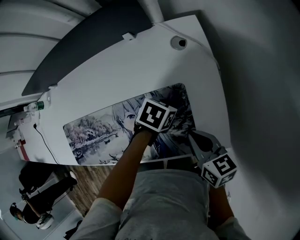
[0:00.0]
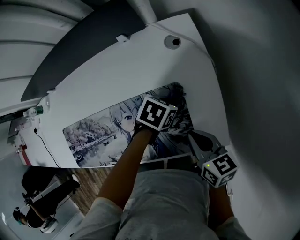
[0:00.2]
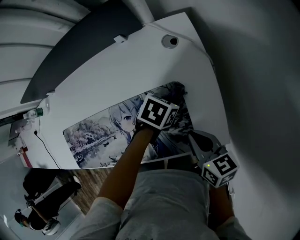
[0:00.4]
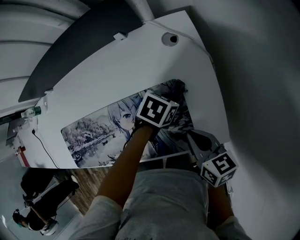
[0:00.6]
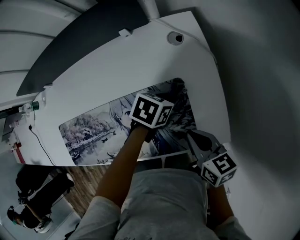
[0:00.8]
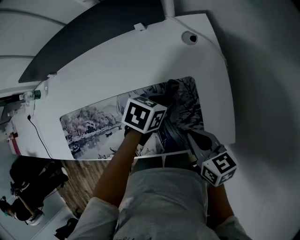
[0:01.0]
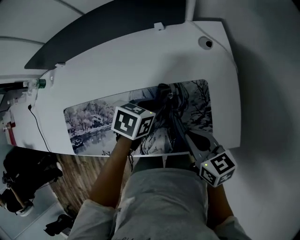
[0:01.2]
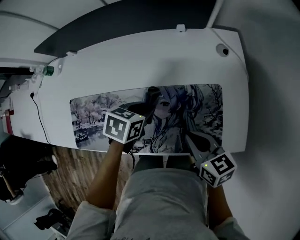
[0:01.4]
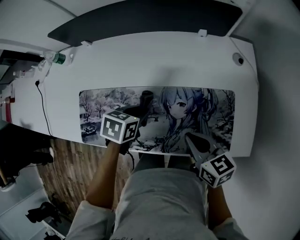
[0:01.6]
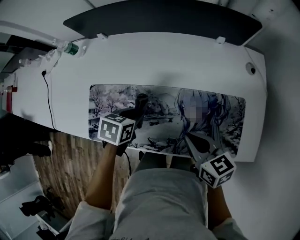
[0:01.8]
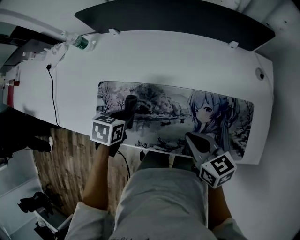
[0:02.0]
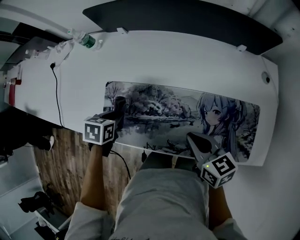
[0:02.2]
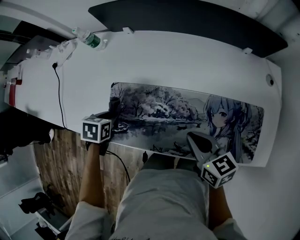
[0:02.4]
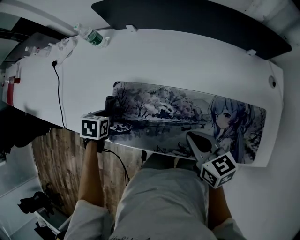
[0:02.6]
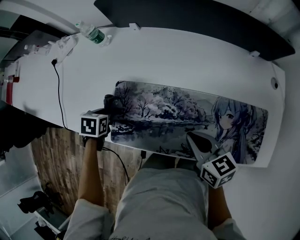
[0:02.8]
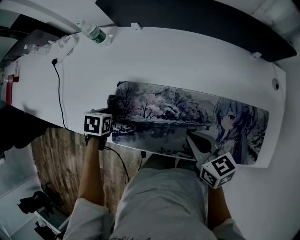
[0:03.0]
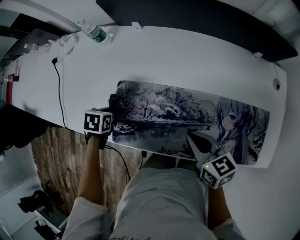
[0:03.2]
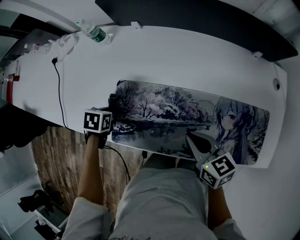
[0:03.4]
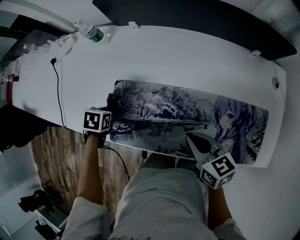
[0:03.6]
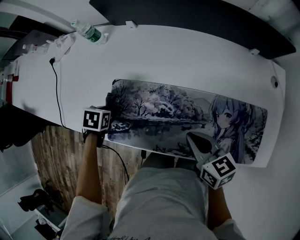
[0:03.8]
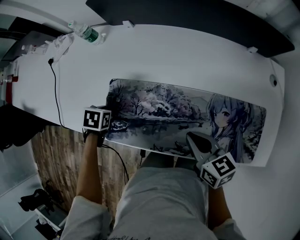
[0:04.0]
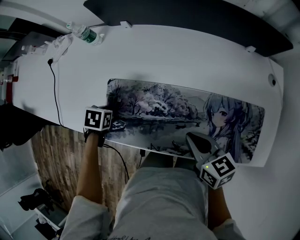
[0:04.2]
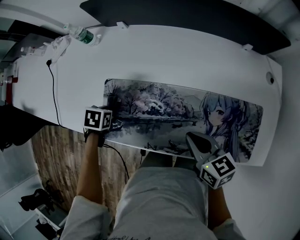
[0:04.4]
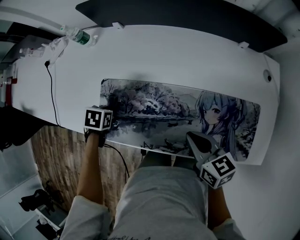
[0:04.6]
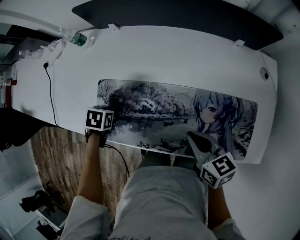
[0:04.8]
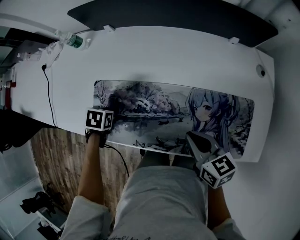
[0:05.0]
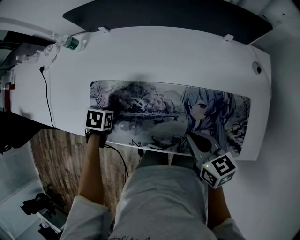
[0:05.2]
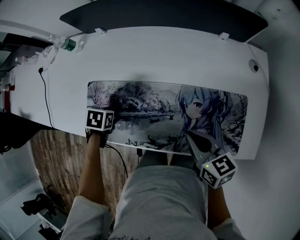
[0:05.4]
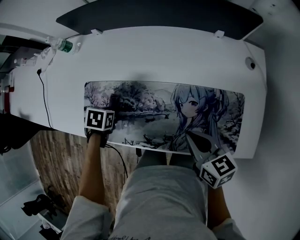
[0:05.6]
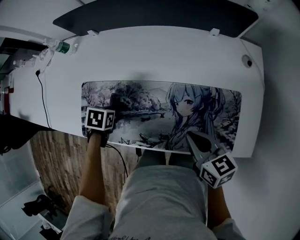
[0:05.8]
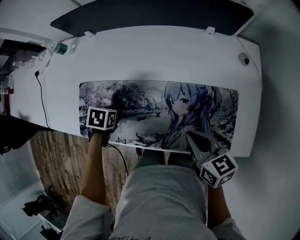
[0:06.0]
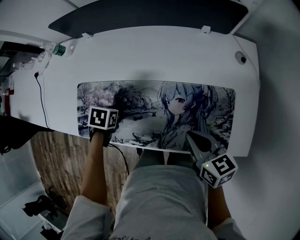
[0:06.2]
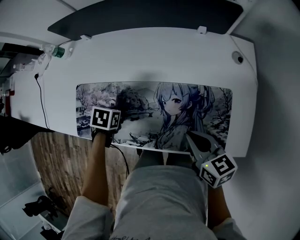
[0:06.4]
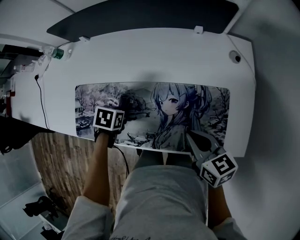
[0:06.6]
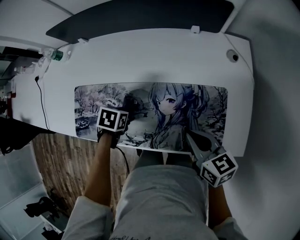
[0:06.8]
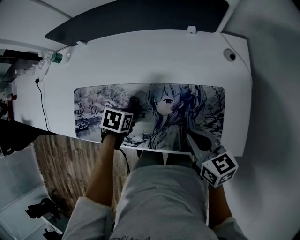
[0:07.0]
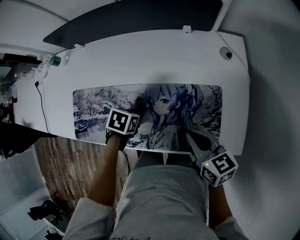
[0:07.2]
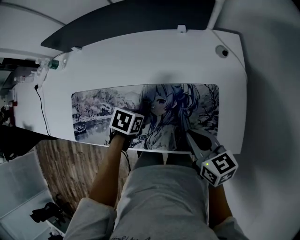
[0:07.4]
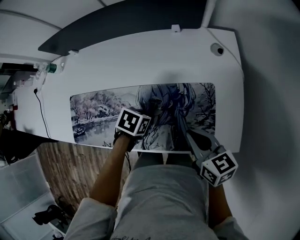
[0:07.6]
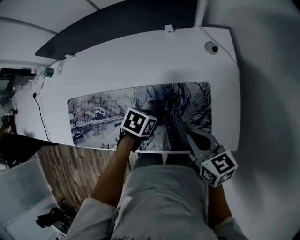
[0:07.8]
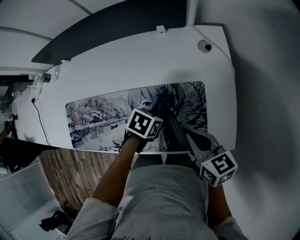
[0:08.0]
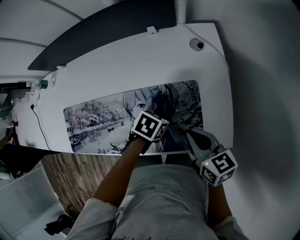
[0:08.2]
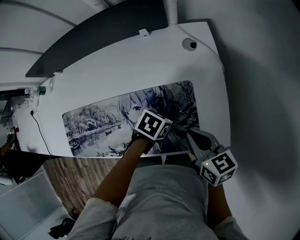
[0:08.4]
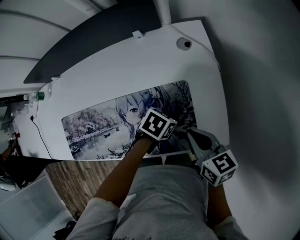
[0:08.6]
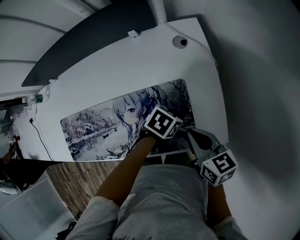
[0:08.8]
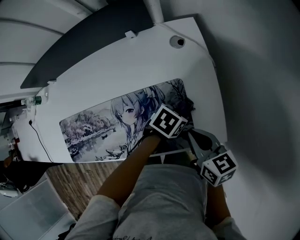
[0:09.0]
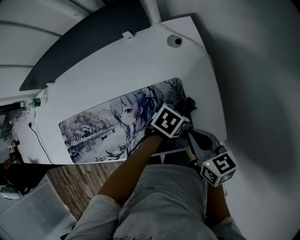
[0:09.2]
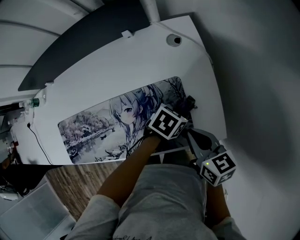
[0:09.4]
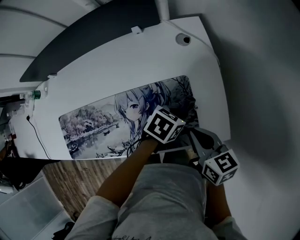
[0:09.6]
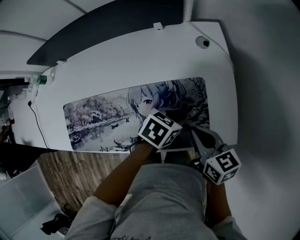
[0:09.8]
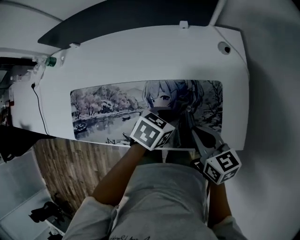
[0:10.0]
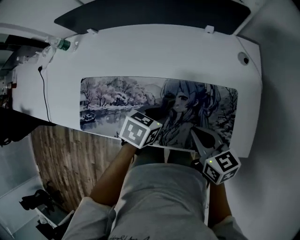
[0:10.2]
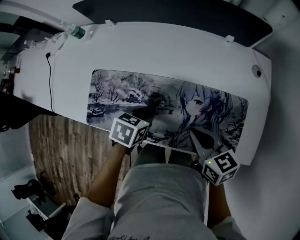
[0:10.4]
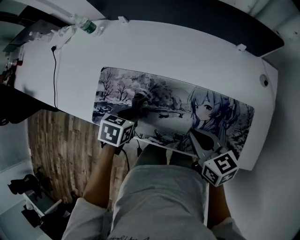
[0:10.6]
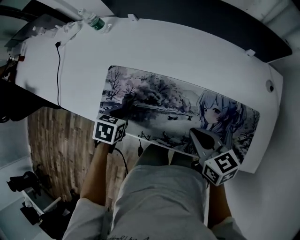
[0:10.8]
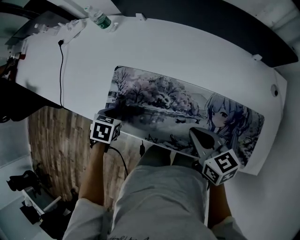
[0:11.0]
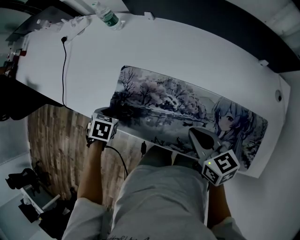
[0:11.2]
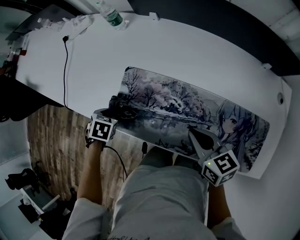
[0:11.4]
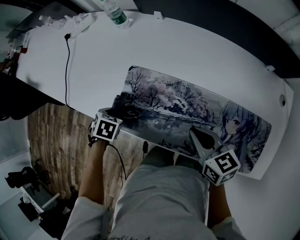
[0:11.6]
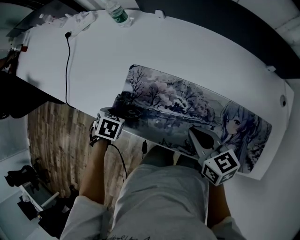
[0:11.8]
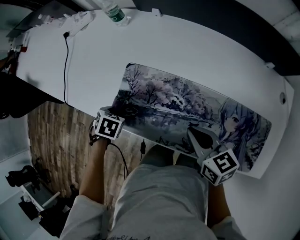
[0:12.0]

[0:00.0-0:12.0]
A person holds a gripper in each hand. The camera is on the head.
0.0 to 1.6 s: The left gripper shifts by approximately 35 cm, and rotates roughly 30 degrees; the right gripper shifts by approximately 20 cm.
1.6 to 3.0 s: The right gripper moves roughly 25 cm. Meanwhile the left gripper shifts by roughly 40 cm, and changes its angle by some 20 degrees.
3.0 to 4.4 s: The left gripper moves about 5 cm; the right gripper ends up some 5 cm from where it was.
4.4 to 6.0 s: The right gripper moves roughly 15 cm; the left gripper ends up approximately 20 cm from where it was.
6.0 to 7.6 s: The left gripper moves about 25 cm, and turns by roughly 20 degrees. The right gripper moves about 10 cm.
7.6 to 9.0 s: The left gripper ends up approximately 25 cm from where it was, and changes its angle by about 20 degrees; the right gripper ends up approximately 10 cm from where it was.
9.0 to 10.4 s: The right gripper shifts by some 25 cm, and swivels roughly 30 degrees; the left gripper shifts by approximately 40 cm, and turns by about 40 degrees.
10.4 to 12.0 s: The left gripper ends up roughly 35 cm from where it was, and changes its angle by about 30 degrees. The right gripper shifts by approximately 20 cm.

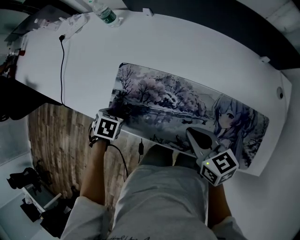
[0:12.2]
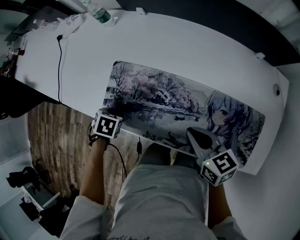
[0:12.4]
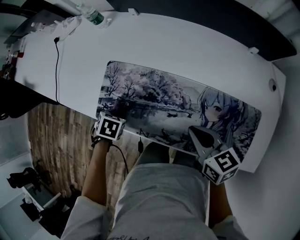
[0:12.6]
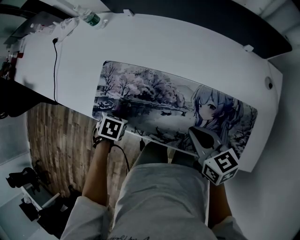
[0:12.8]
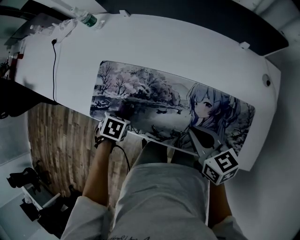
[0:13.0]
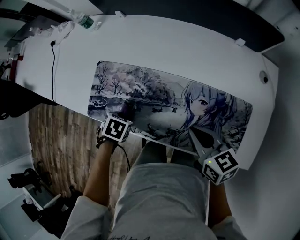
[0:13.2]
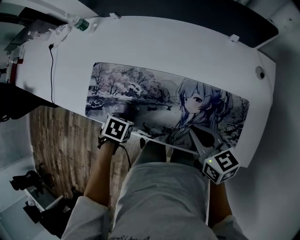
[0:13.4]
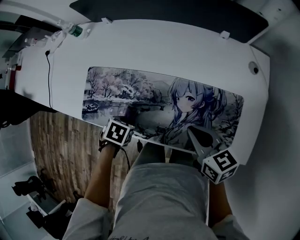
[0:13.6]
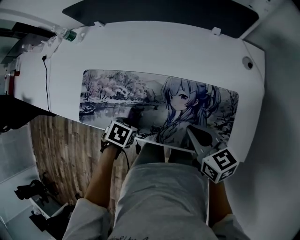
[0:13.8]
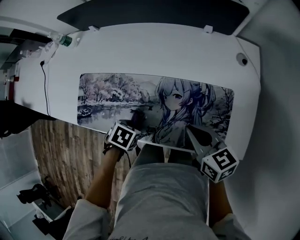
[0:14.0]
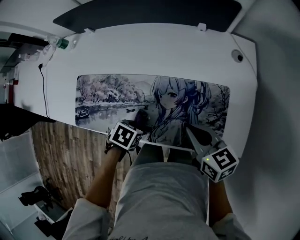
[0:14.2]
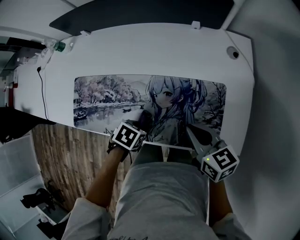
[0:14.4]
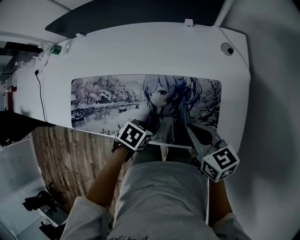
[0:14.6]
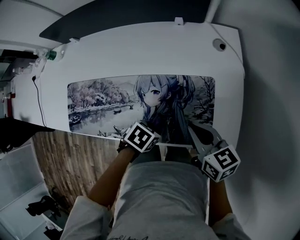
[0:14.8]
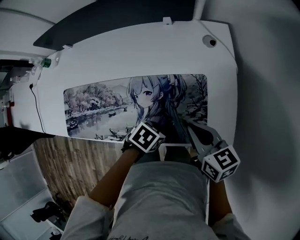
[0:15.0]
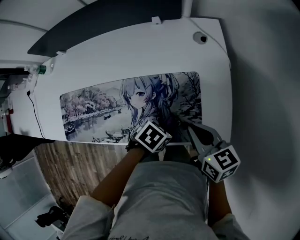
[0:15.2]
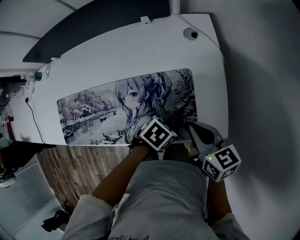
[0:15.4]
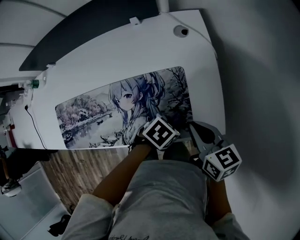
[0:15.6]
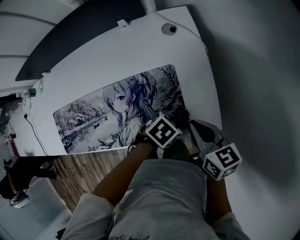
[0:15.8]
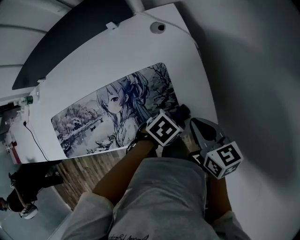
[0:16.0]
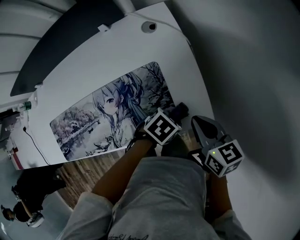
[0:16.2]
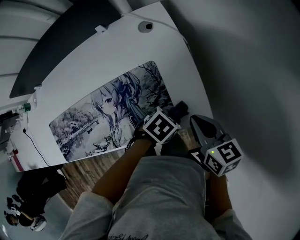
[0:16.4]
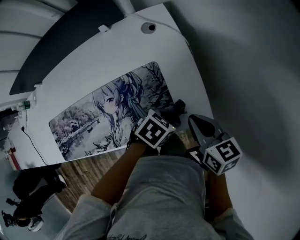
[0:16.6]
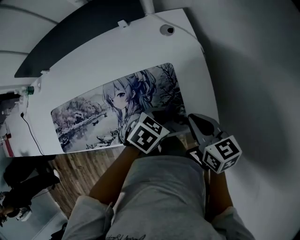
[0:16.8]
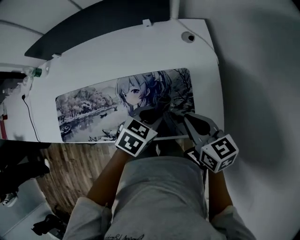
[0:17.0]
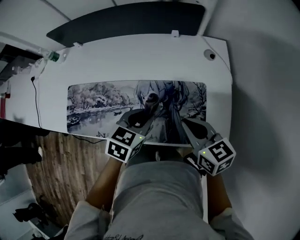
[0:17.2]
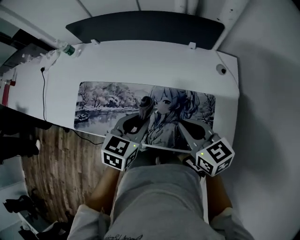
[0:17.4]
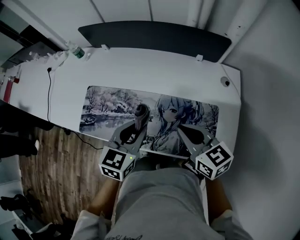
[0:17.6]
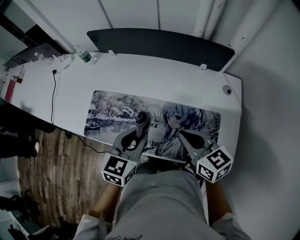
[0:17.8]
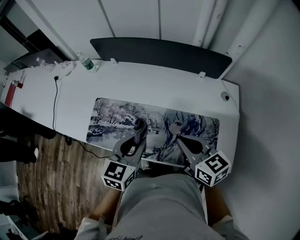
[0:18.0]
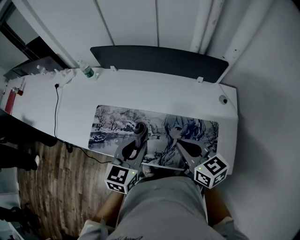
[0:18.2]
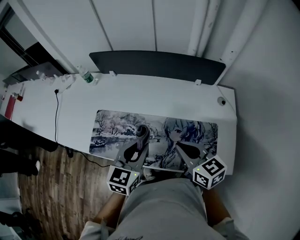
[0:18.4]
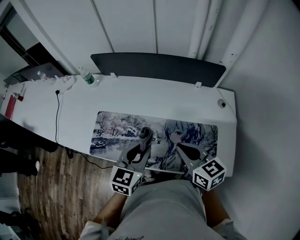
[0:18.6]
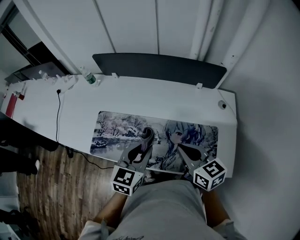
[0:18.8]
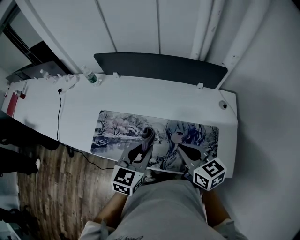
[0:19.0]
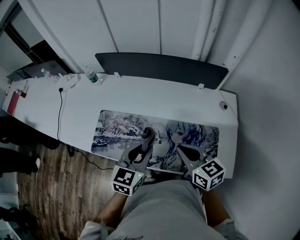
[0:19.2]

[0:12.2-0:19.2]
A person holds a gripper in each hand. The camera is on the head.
12.2 to 13.6 s: The right gripper shifts by approximately 20 cm. Meanwhile the left gripper shifts by some 25 cm.
13.6 to 15.0 s: The right gripper moves approximately 15 cm; the left gripper ends up roughly 30 cm from where it was, and swivels some 30 degrees.
15.0 to 16.4 s: The left gripper shifts by about 20 cm, and swivels roughly 30 degrees. The right gripper changes place by approximately 15 cm, and changes its angle by roughly 20 degrees.
16.4 to 17.8 s: The left gripper moves approximately 50 cm, and points its fingers about 40 degrees further upward. Meanwhile the right gripper moves approximately 35 cm, and turns by some 40 degrees.
17.8 to 19.2 s: The grippers make only small movements.

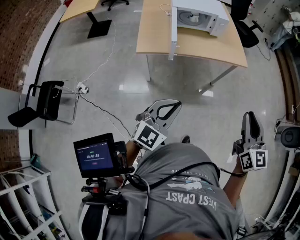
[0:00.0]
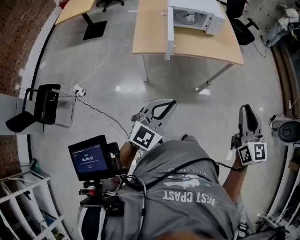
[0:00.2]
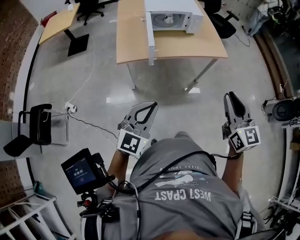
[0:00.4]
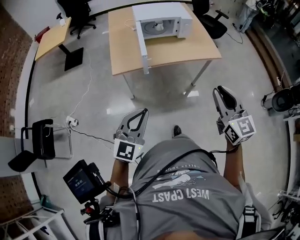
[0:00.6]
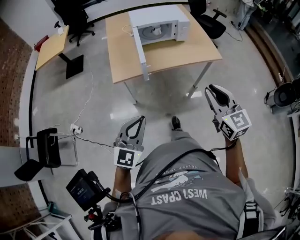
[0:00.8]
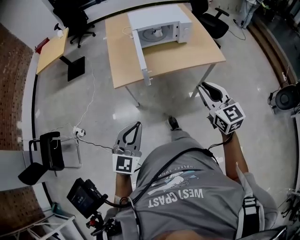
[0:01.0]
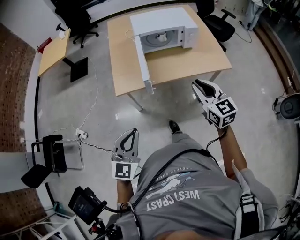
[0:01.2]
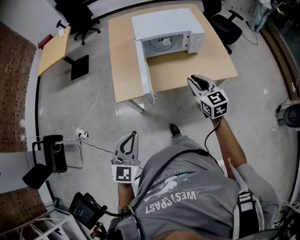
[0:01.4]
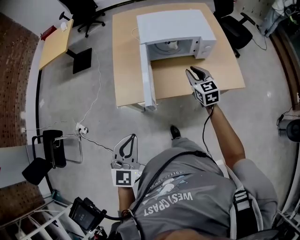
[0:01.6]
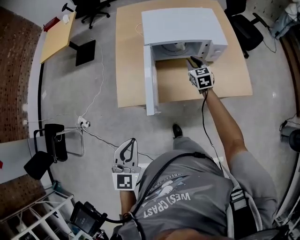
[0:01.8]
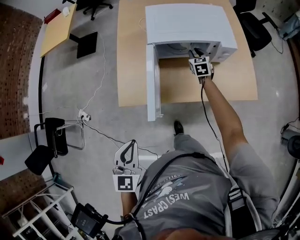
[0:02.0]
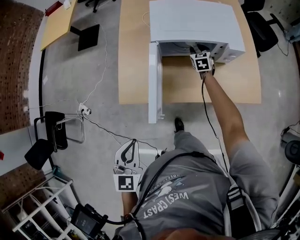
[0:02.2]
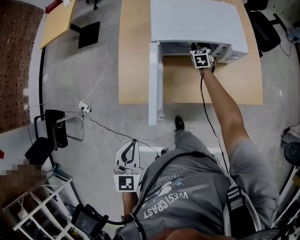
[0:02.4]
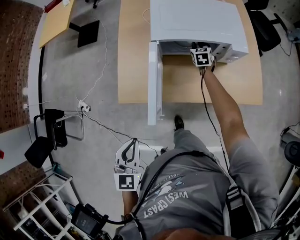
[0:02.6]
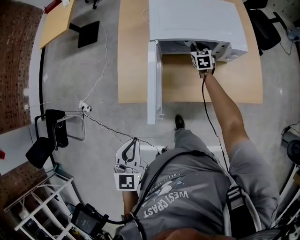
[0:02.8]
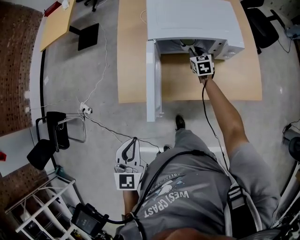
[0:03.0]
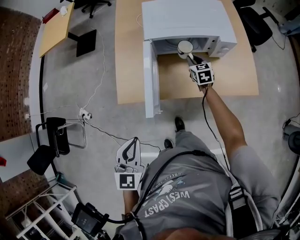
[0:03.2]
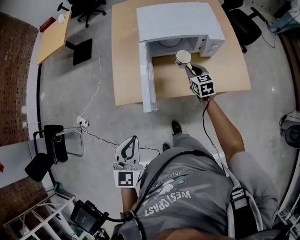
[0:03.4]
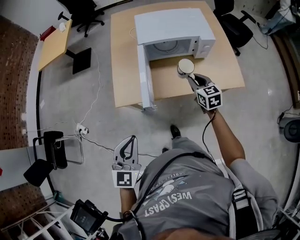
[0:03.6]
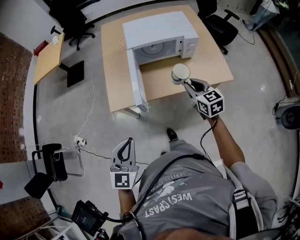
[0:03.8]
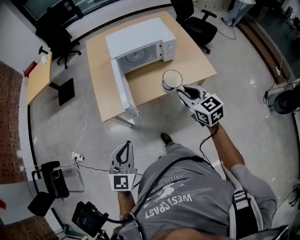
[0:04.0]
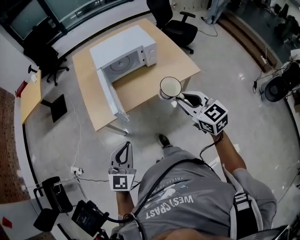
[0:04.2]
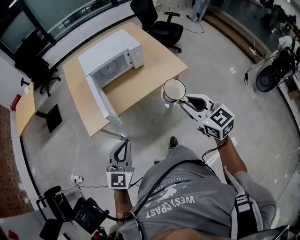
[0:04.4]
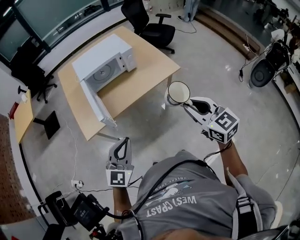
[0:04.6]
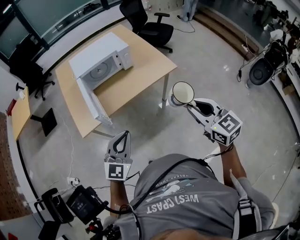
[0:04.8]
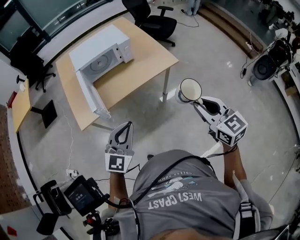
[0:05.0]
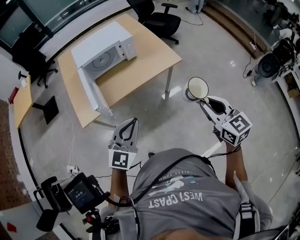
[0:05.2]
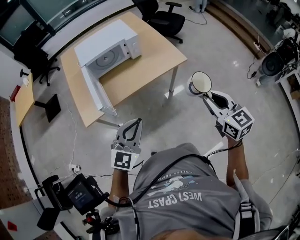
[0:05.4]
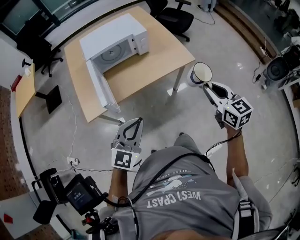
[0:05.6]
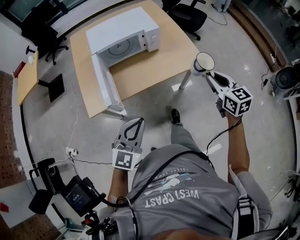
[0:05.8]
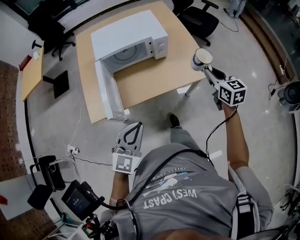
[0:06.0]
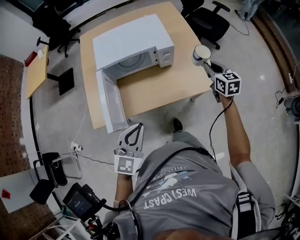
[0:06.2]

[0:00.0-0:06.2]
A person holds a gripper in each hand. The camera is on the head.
0.0 to 1.6 s: The left gripper goes some 30 cm forward, and swivels roughly 20 degrees. The right gripper moves forward, some 60 cm, and swivels about 20 degrees.
1.6 to 3.2 s: The right gripper moves forward and downward, approximately 25 cm, while the left gripper travels forward and downward by roughly 10 cm.
3.2 to 4.6 s: The left gripper moves backward and to the right, some 25 cm, and swivels approximately 50 degrees; the right gripper travels backward and upward by roughly 70 cm, and changes its angle by about 20 degrees.
4.6 to 6.2 s: The left gripper goes some 25 cm forward, while the right gripper shifts some 50 cm forward.
